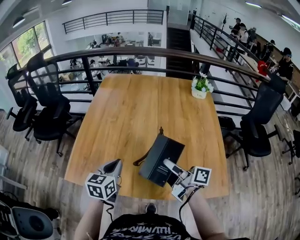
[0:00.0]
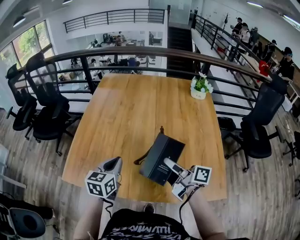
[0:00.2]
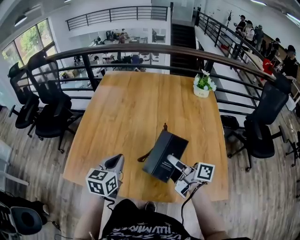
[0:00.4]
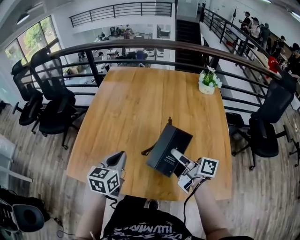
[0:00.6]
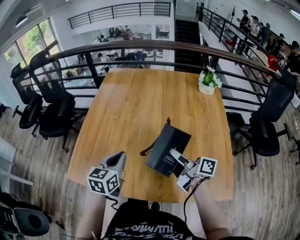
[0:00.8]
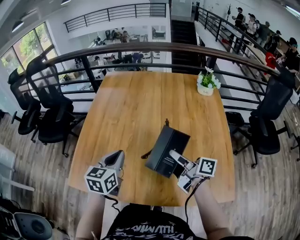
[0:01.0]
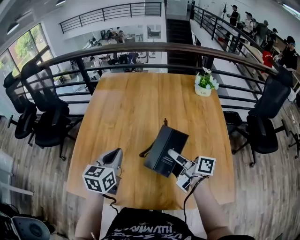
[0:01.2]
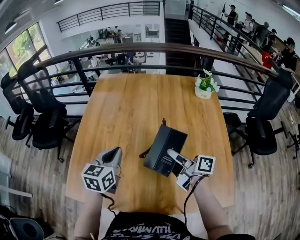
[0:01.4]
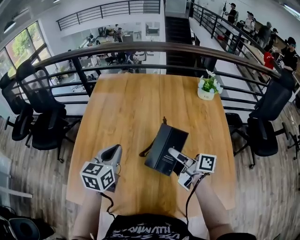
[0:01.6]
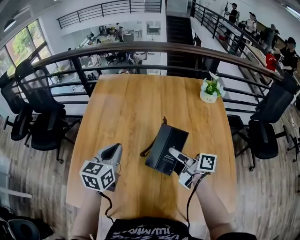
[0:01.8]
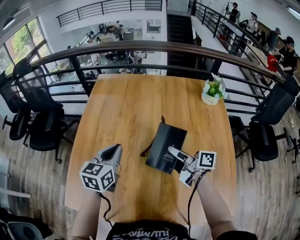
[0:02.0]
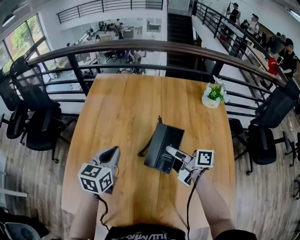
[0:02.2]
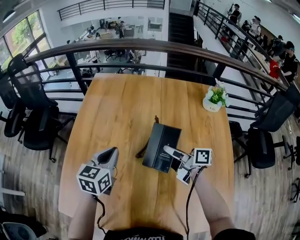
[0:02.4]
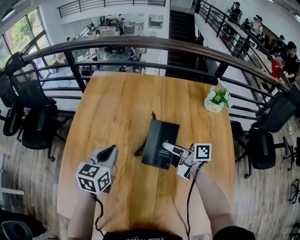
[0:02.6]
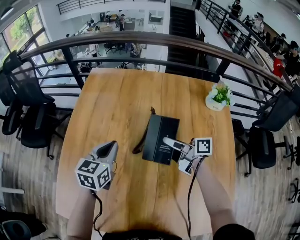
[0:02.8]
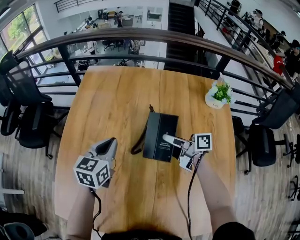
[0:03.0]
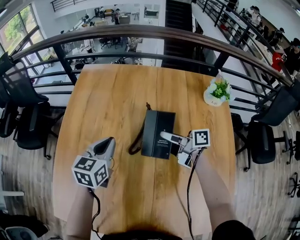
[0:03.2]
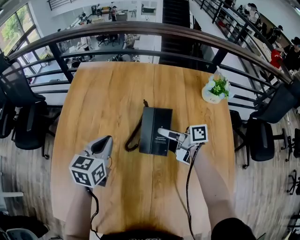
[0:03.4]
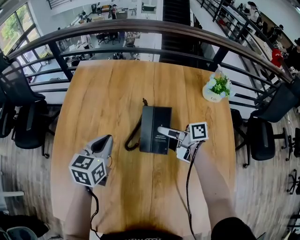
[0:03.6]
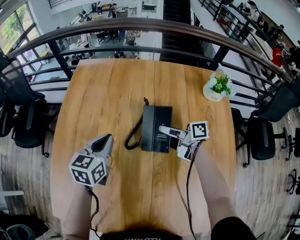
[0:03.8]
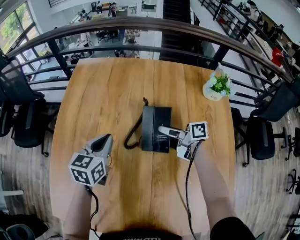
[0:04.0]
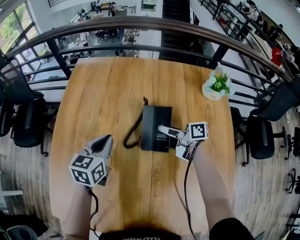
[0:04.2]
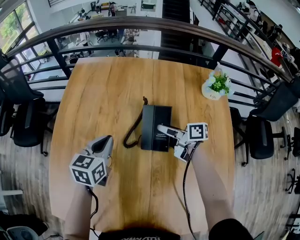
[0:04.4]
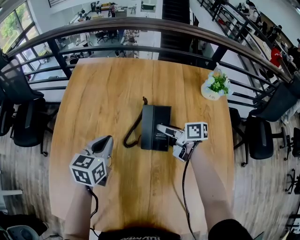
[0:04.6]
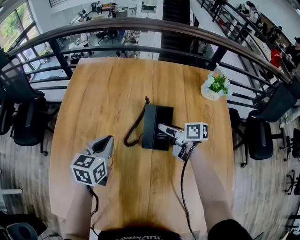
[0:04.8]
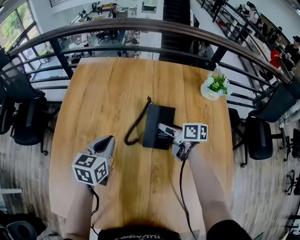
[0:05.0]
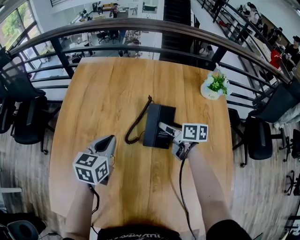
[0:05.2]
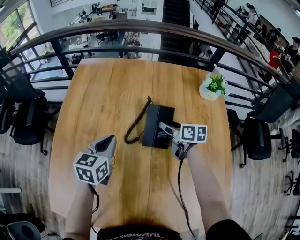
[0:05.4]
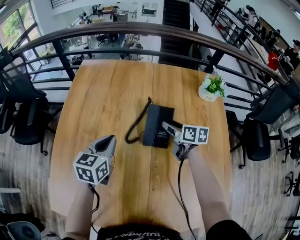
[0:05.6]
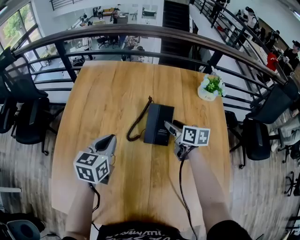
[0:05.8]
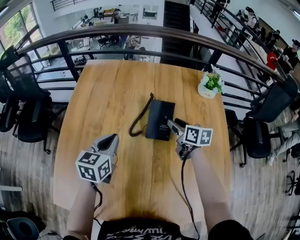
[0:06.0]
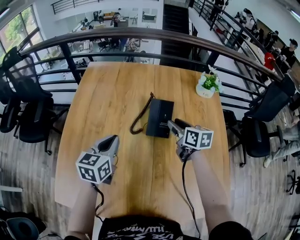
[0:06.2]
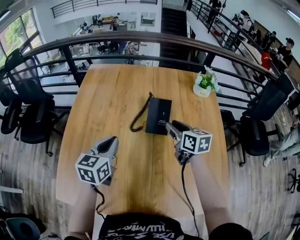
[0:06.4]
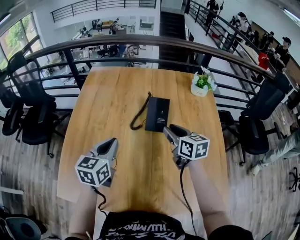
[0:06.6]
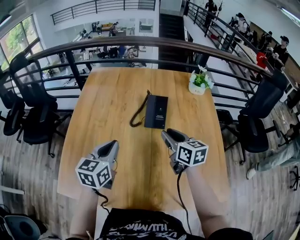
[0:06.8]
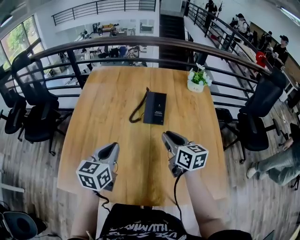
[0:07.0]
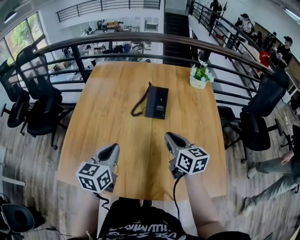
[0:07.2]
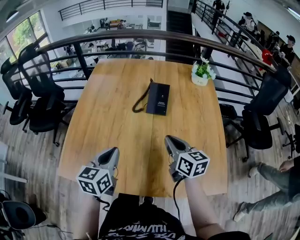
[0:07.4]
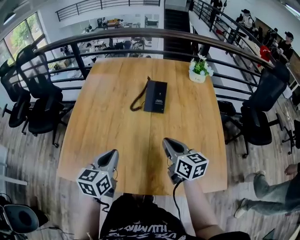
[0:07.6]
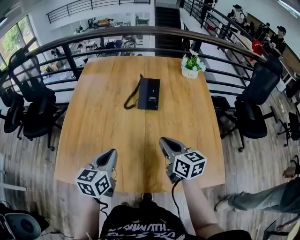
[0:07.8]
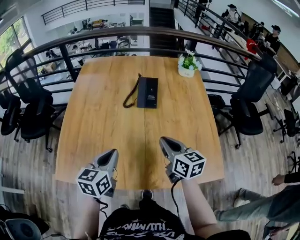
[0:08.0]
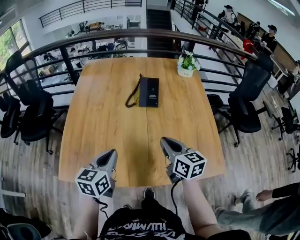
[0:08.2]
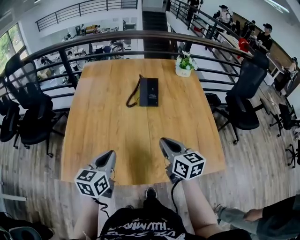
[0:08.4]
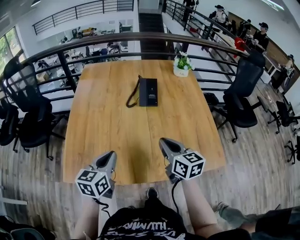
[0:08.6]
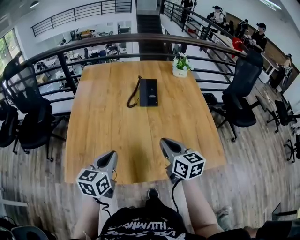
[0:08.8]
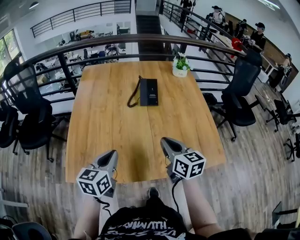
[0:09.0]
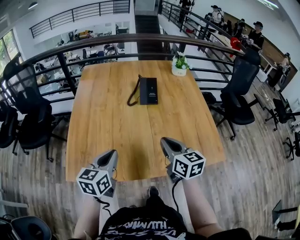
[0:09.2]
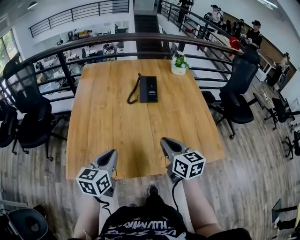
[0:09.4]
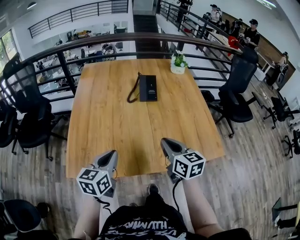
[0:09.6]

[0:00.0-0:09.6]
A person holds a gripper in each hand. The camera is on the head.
0:00.0 to 0:01.6: The grippers both shift forward by some 15 cm.
0:01.6 to 0:03.2: The left gripper goes about 20 cm forward, to the right and downward. The right gripper goes approximately 20 cm forward.
0:03.2 to 0:04.8: The grippers stay close to where they were, moving slightly.
0:04.8 to 0:06.4: The grippers both shift backward and upward by about 15 cm. The right gripper changes its angle by approximately 30 degrees.
0:06.4 to 0:08.0: Both grippers travel together backward, about 25 cm. The right gripper closes its fingers.
0:08.0 to 0:09.6: Both grippers move backward and to the left, approximately 15 cm.

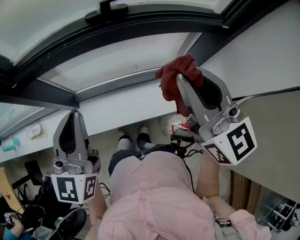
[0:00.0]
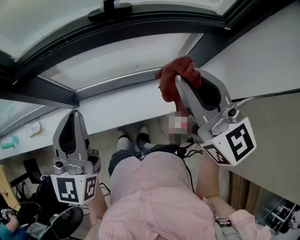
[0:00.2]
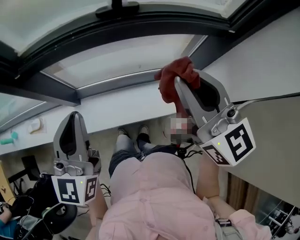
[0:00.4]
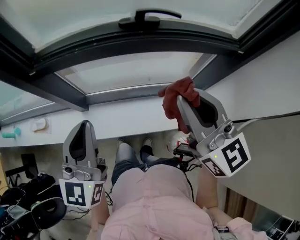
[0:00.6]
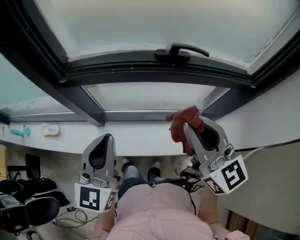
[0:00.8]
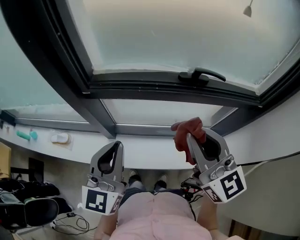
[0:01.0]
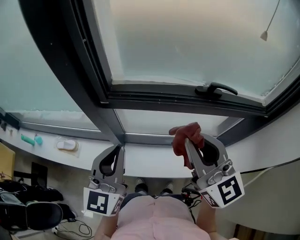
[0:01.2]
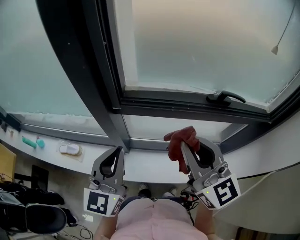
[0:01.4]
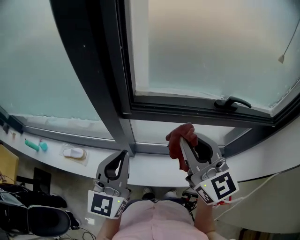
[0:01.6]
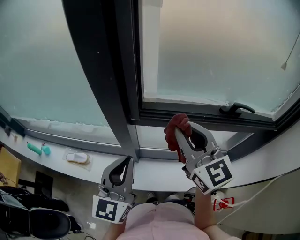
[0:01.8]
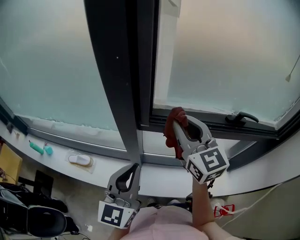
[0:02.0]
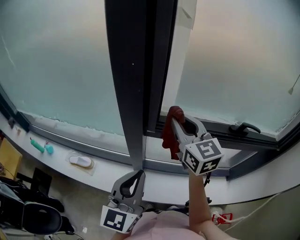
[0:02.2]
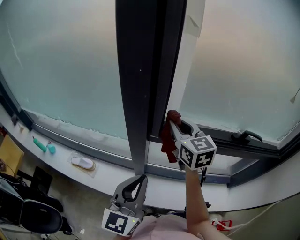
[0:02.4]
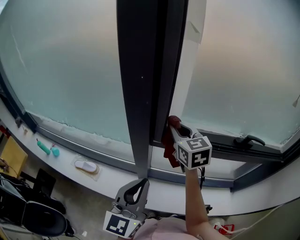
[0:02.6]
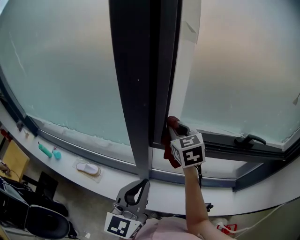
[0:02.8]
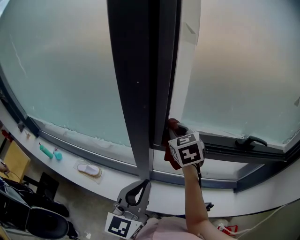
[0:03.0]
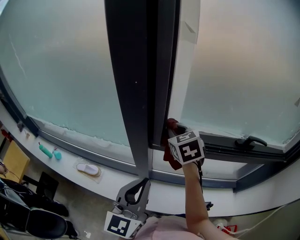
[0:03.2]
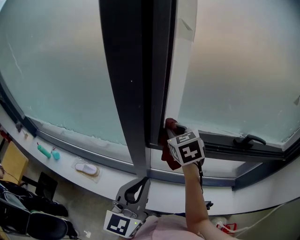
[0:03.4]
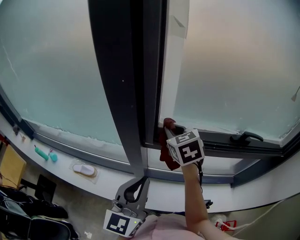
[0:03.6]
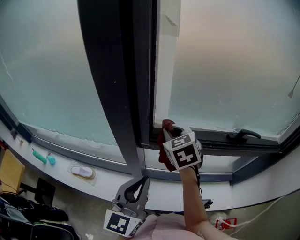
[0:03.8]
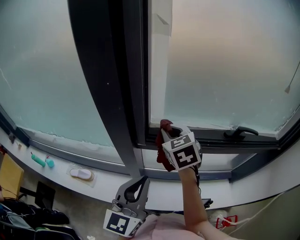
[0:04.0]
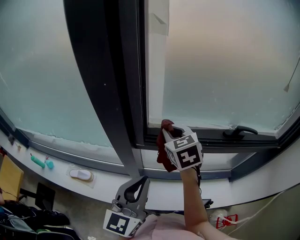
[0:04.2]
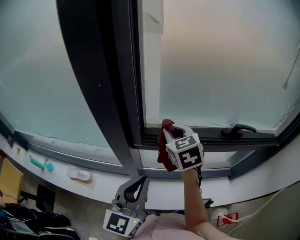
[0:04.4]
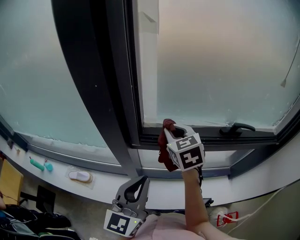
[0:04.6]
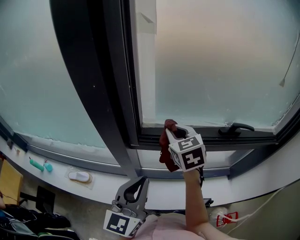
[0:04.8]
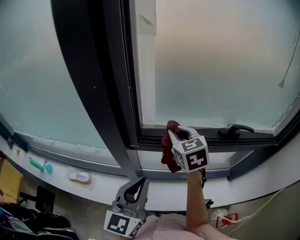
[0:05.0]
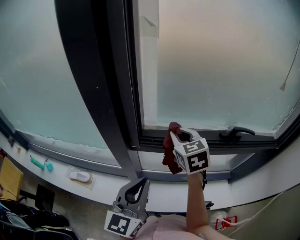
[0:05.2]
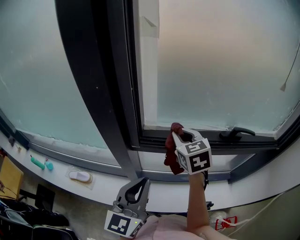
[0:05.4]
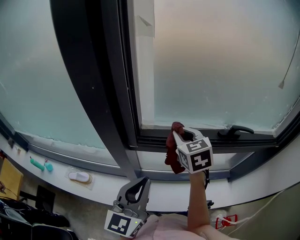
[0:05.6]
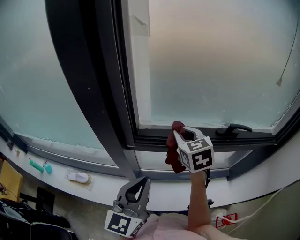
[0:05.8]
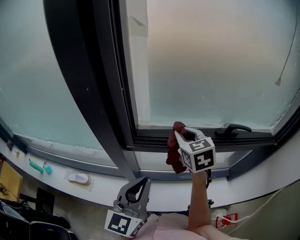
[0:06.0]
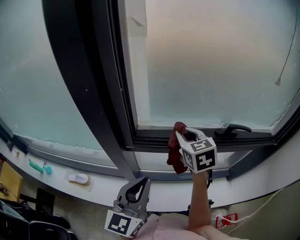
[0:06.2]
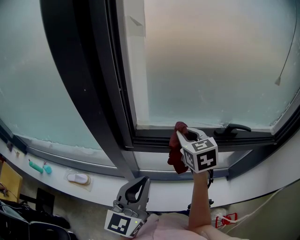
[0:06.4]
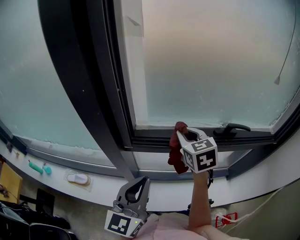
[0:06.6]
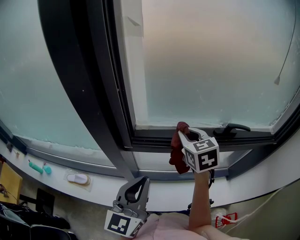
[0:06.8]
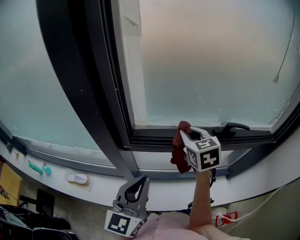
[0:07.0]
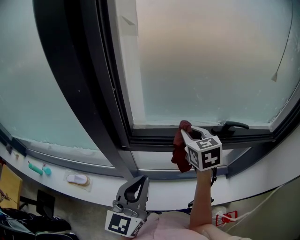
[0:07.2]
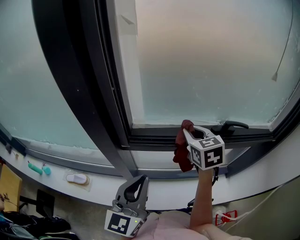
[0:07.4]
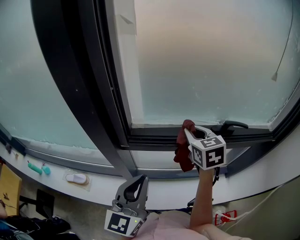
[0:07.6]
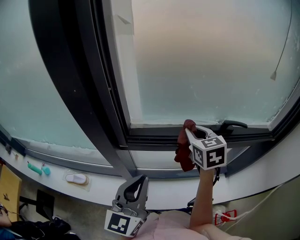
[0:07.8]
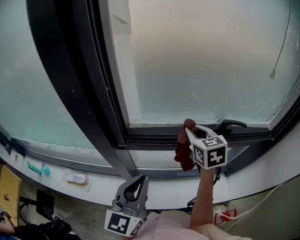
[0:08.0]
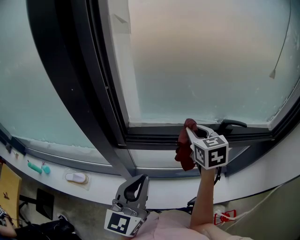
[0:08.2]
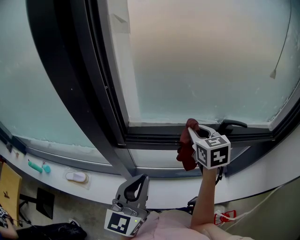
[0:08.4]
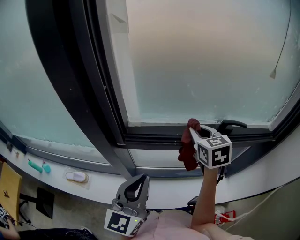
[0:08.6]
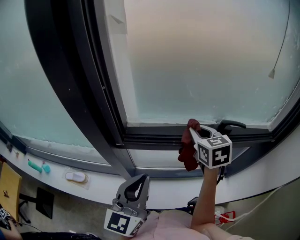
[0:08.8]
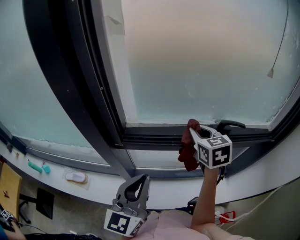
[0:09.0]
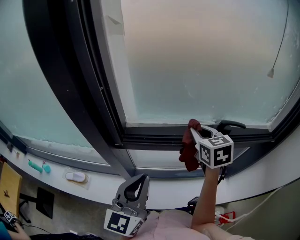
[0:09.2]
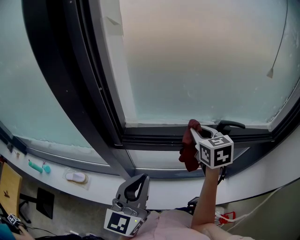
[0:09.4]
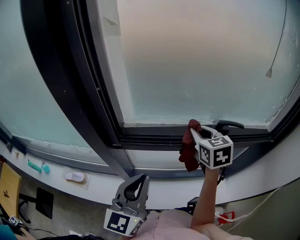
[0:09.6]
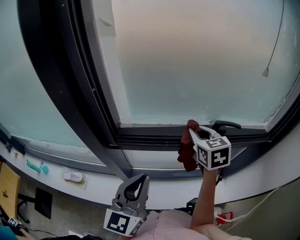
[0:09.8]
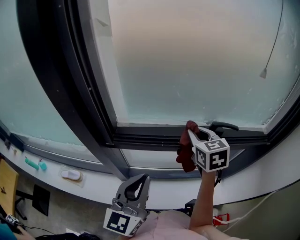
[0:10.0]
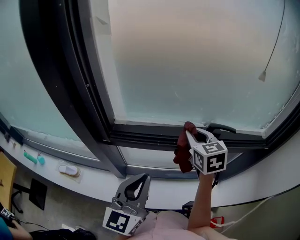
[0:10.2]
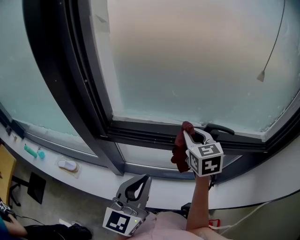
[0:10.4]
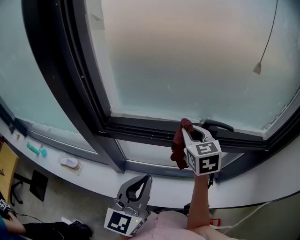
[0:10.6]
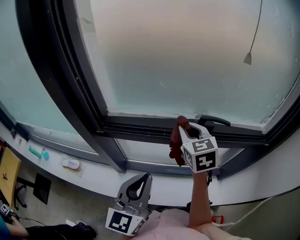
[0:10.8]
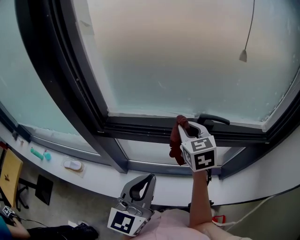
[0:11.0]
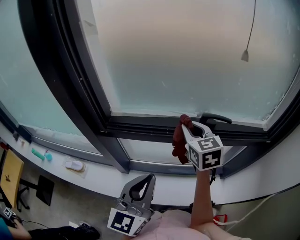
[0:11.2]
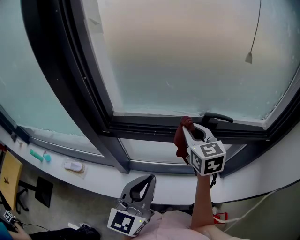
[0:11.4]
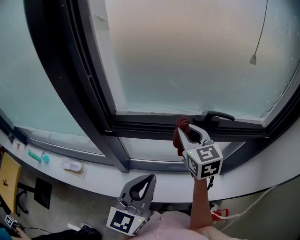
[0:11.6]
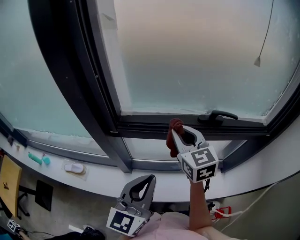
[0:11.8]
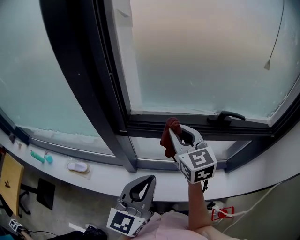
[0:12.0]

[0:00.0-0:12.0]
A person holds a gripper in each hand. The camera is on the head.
0:00.0 to 0:01.6: The grippers both shift to the left by some 30 cm.
0:01.6 to 0:03.0: The right gripper is displaced forward and to the left by some 25 cm, and swivels about 30 degrees.
0:03.0 to 0:04.4: The right gripper travels to the right by about 5 cm; the left gripper moves roughly 5 cm.
0:04.4 to 0:06.0: The right gripper is displaced to the right by about 5 cm.
0:06.0 to 0:07.6: The right gripper goes roughly 5 cm to the right.
0:07.6 to 0:09.0: There are only small adjustments of the grippers.
0:09.0 to 0:10.4: The left gripper travels to the right by about 10 cm.
0:10.4 to 0:12.0: The right gripper shifts some 15 cm to the left and backward. Meanwhile the left gripper shifts approximately 5 cm to the left.

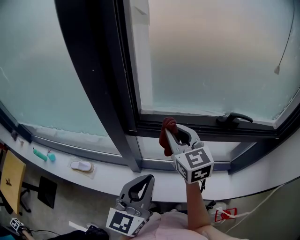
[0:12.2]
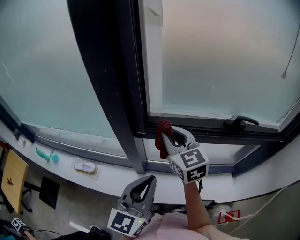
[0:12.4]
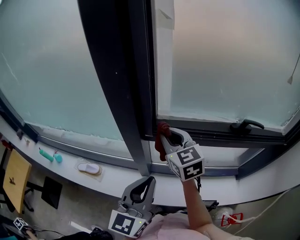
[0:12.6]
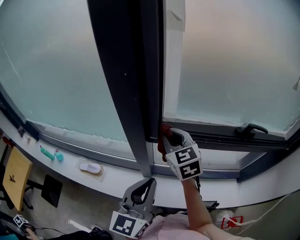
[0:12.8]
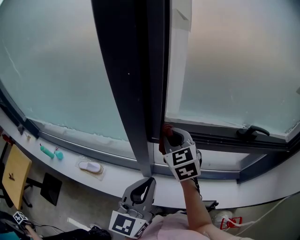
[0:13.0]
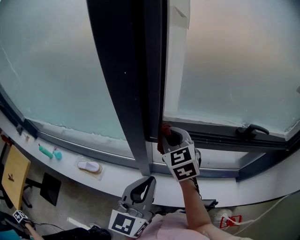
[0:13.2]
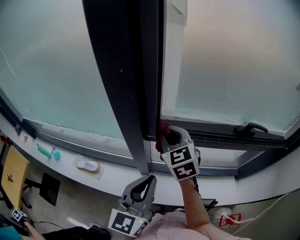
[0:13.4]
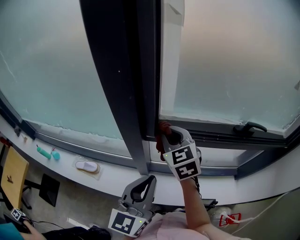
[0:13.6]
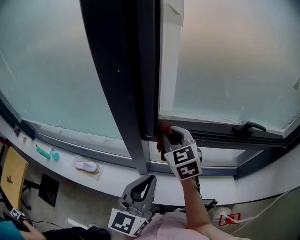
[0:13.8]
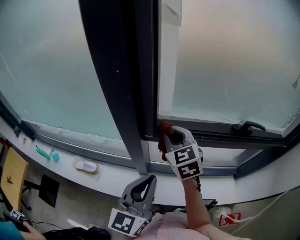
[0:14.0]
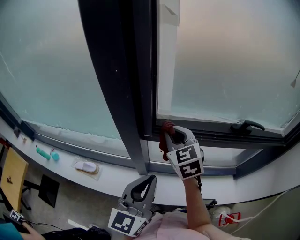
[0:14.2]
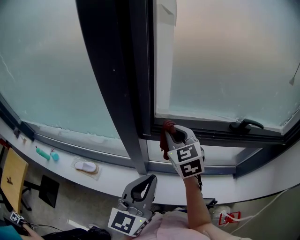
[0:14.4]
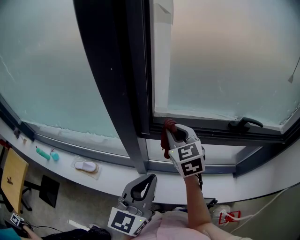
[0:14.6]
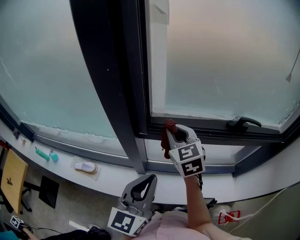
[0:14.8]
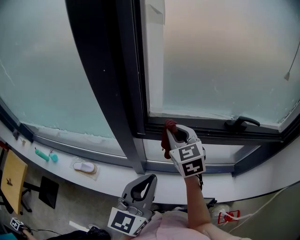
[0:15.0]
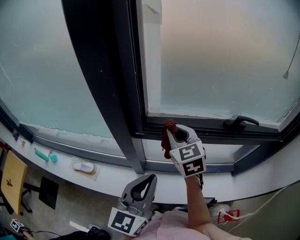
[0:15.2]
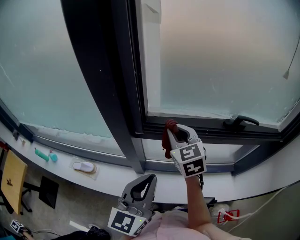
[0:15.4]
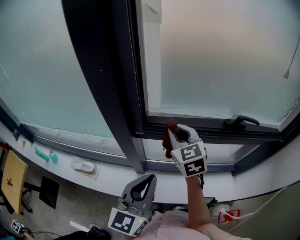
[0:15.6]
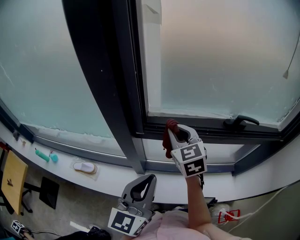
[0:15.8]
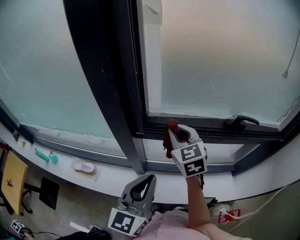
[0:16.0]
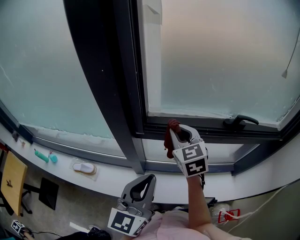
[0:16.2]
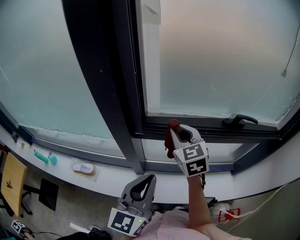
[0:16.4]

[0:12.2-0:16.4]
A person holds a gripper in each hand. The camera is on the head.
0:12.2 to 0:13.6: The two grippers go approximately 5 cm to the left.
0:13.6 to 0:15.0: The right gripper shifts some 5 cm to the right.
0:15.0 to 0:16.4: The grippers stay close to where they were, moving slightly.
